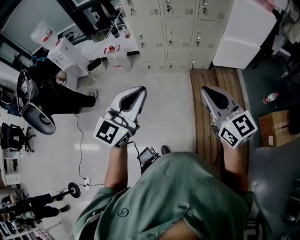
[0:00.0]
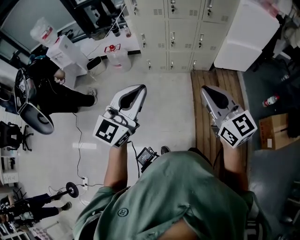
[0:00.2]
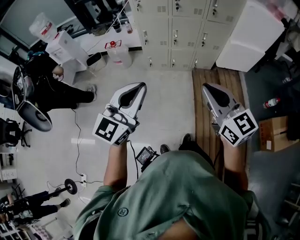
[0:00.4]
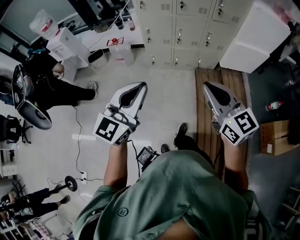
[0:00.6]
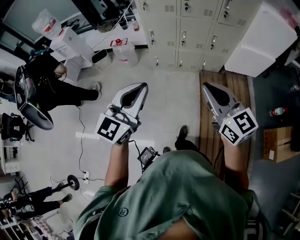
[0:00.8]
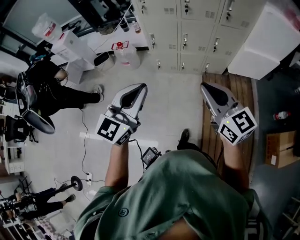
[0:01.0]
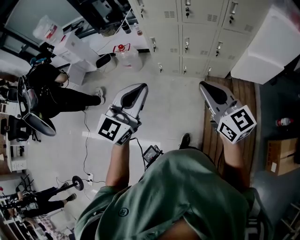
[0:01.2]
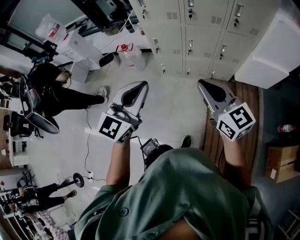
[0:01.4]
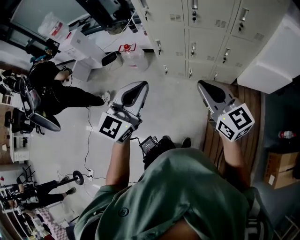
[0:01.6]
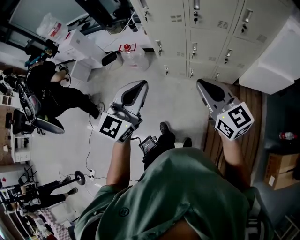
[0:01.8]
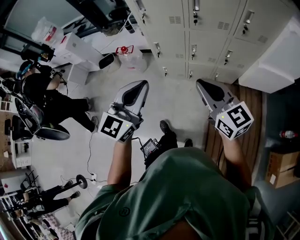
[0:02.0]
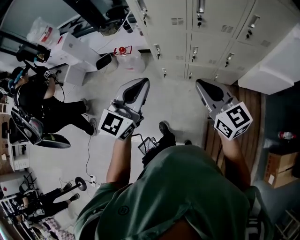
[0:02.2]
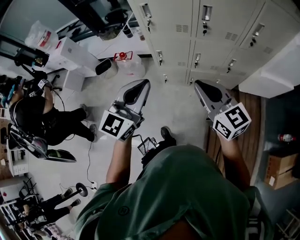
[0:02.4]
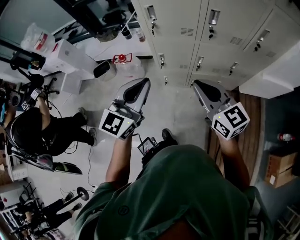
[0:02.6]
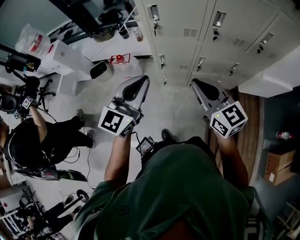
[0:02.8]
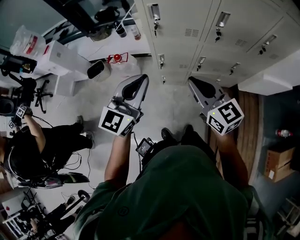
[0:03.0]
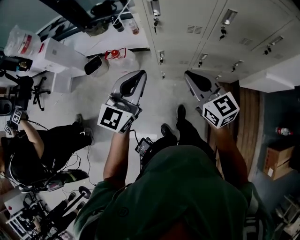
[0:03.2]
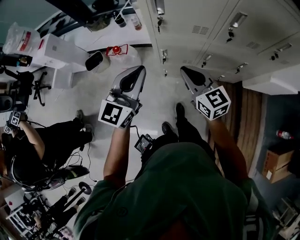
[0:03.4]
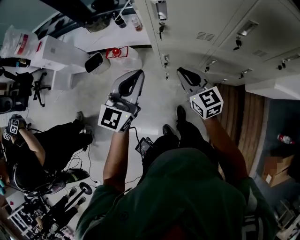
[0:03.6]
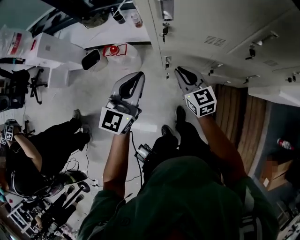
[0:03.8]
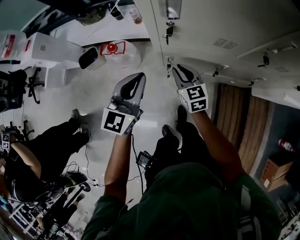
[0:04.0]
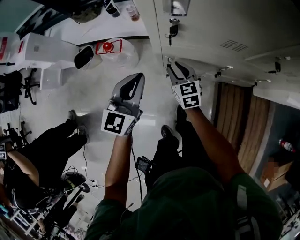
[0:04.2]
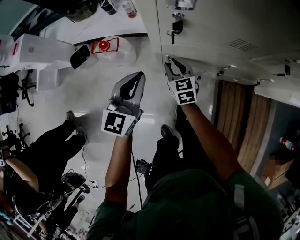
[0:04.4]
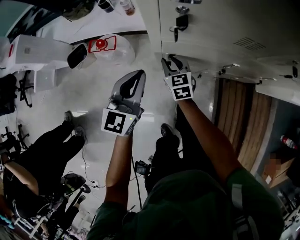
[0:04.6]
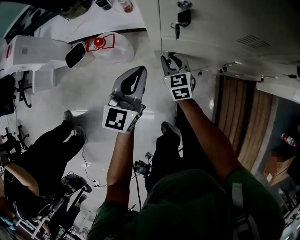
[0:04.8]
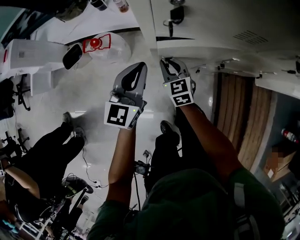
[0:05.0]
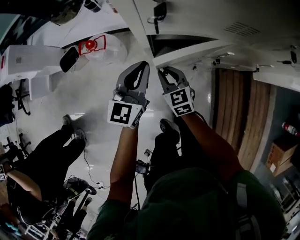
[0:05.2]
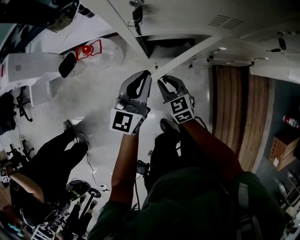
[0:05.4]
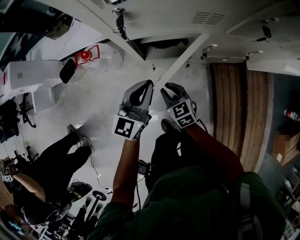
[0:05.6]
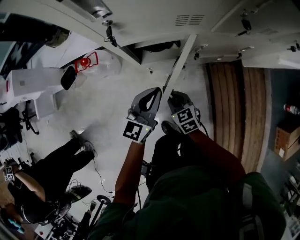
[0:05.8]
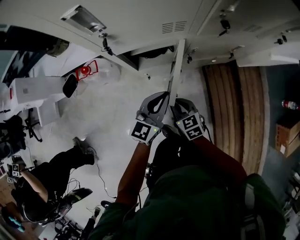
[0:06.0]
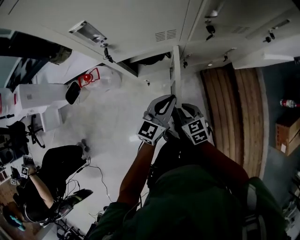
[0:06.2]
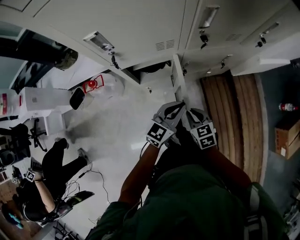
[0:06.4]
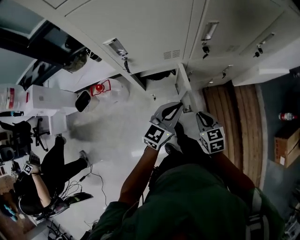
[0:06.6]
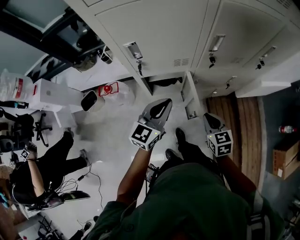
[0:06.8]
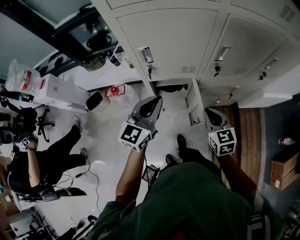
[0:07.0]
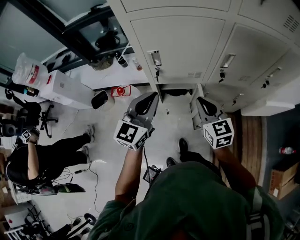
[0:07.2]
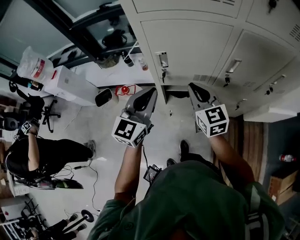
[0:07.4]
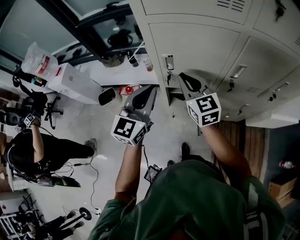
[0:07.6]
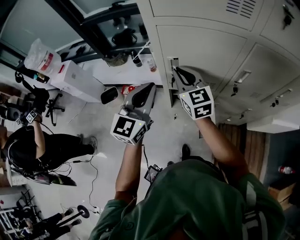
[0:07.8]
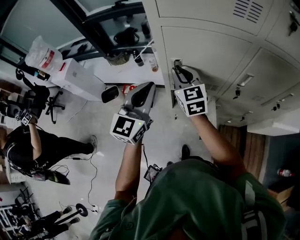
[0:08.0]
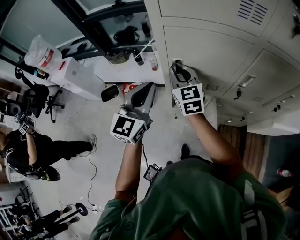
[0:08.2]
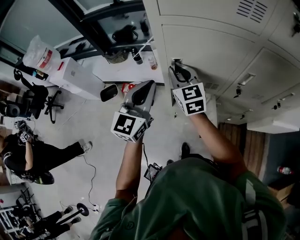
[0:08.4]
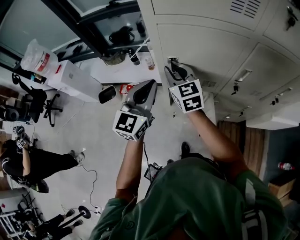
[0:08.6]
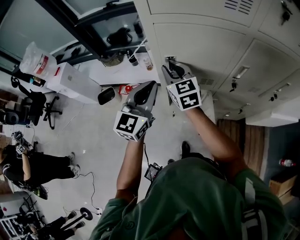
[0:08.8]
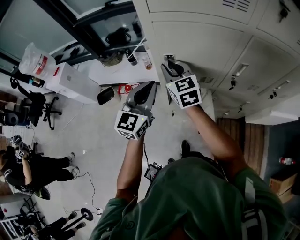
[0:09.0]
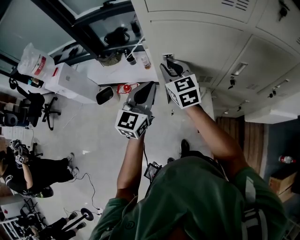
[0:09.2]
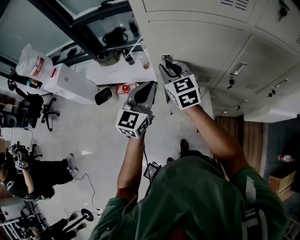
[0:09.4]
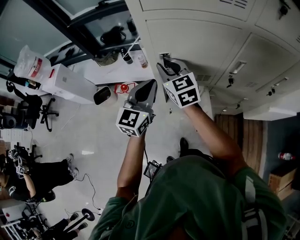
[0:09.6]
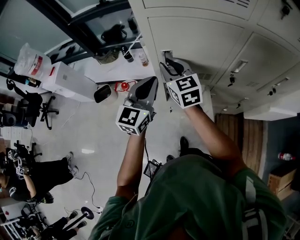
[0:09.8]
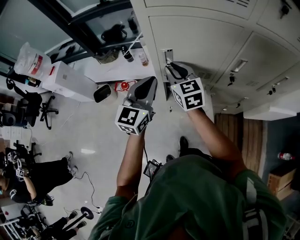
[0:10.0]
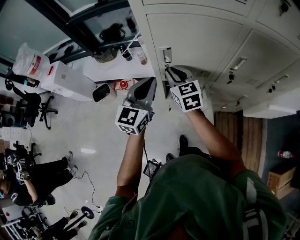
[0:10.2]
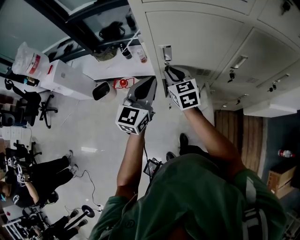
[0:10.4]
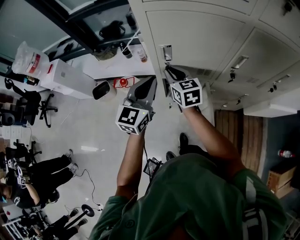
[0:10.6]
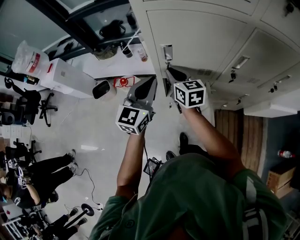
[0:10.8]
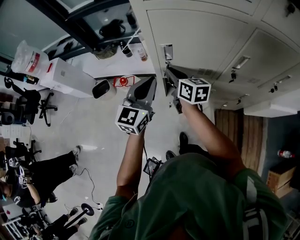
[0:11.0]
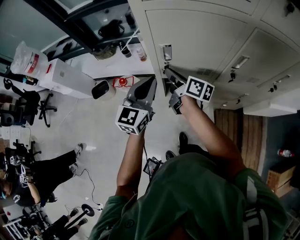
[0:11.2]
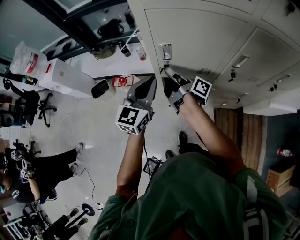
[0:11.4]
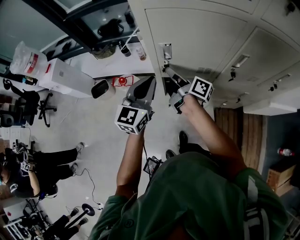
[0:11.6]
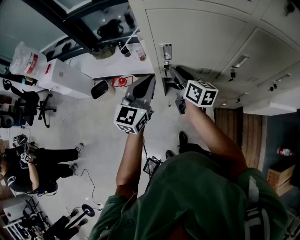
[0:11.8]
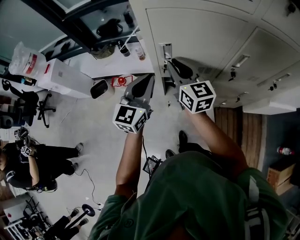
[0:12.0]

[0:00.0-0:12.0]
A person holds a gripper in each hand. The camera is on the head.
0:00.0 to 0:01.6: Both grippers travel together forward, some 30 cm.
0:01.6 to 0:03.0: The two grippers go roughly 30 cm forward and to the left.
0:03.0 to 0:04.4: The grippers both shift downward and forward by roughly 40 cm. The right gripper swivels roughly 30 degrees, and opens its fingers.
0:04.4 to 0:06.0: The right gripper heads backward and to the right, covering approximately 25 cm, while the left gripper travels to the right by about 20 cm, and changes its angle by about 20 degrees.
0:06.0 to 0:07.6: The left gripper is displaced upward and to the left by about 35 cm, and turns by about 30 degrees, while the right gripper is displaced upward by some 40 cm, and tips its fingers upward by approximately 30 degrees.
0:07.6 to 0:09.0: The right gripper heads to the left and forward, covering about 10 cm.
0:09.0 to 0:10.4: The right gripper moves downward, roughly 10 cm.
0:10.4 to 0:12.0: The right gripper heads upward, covering some 5 cm.

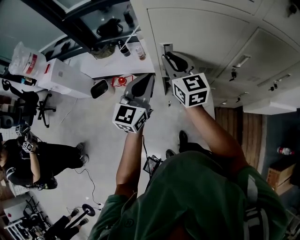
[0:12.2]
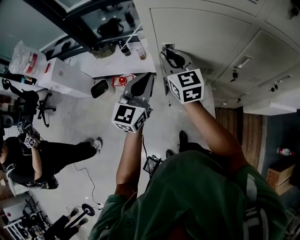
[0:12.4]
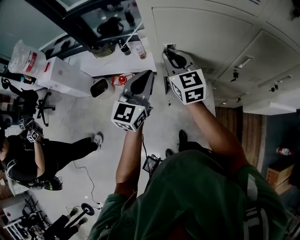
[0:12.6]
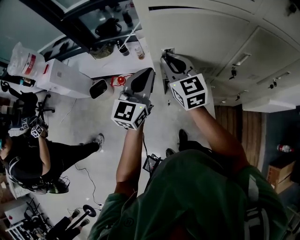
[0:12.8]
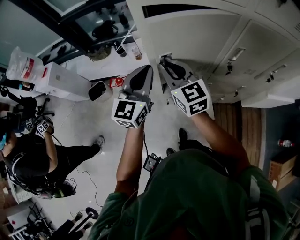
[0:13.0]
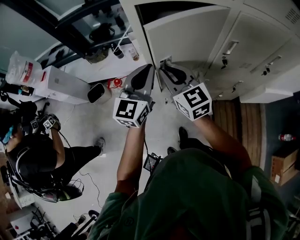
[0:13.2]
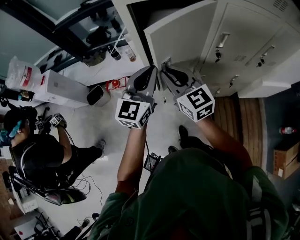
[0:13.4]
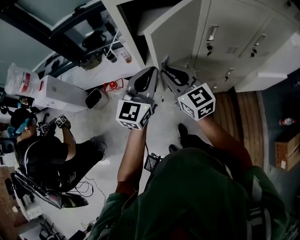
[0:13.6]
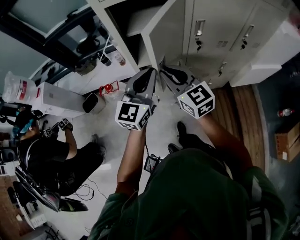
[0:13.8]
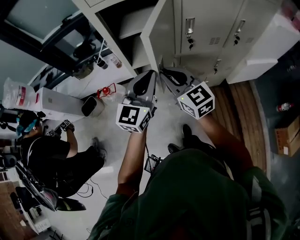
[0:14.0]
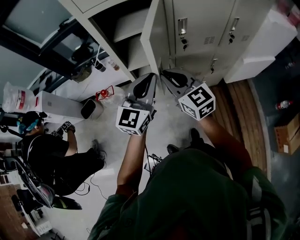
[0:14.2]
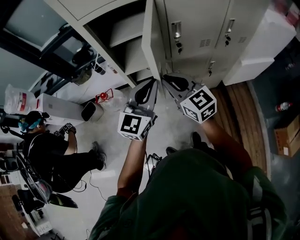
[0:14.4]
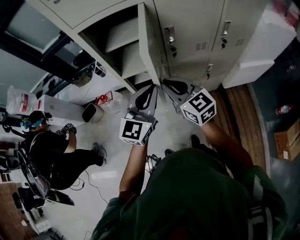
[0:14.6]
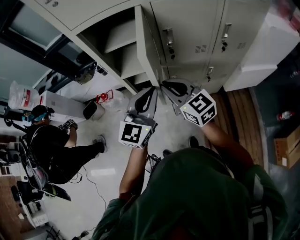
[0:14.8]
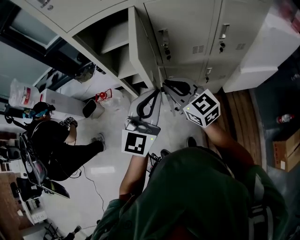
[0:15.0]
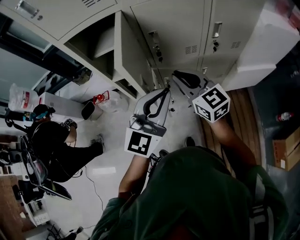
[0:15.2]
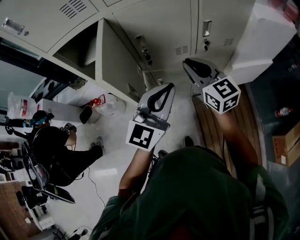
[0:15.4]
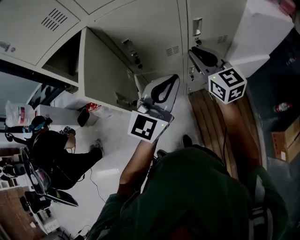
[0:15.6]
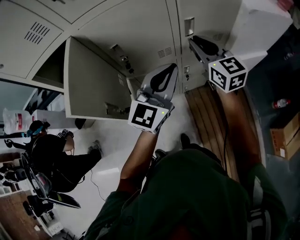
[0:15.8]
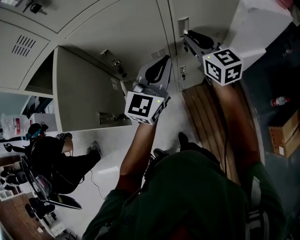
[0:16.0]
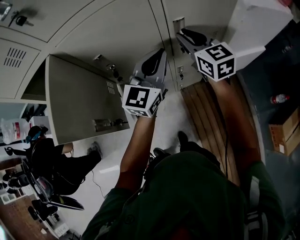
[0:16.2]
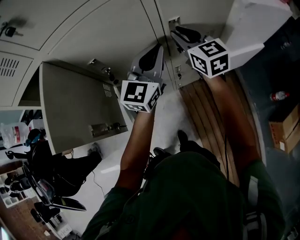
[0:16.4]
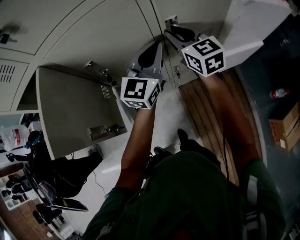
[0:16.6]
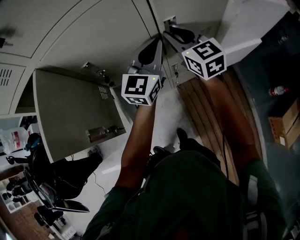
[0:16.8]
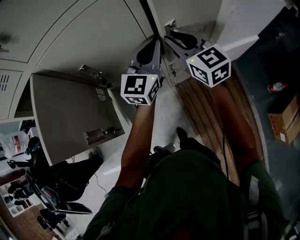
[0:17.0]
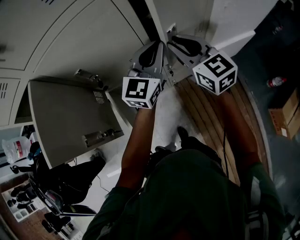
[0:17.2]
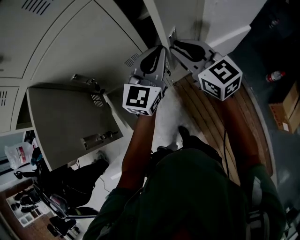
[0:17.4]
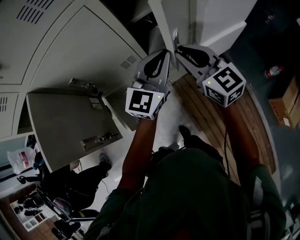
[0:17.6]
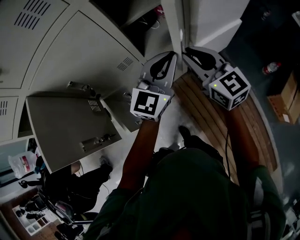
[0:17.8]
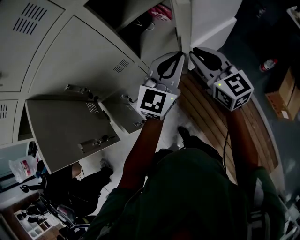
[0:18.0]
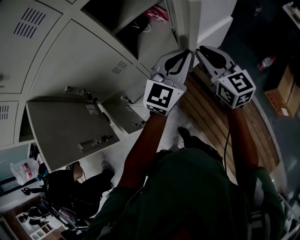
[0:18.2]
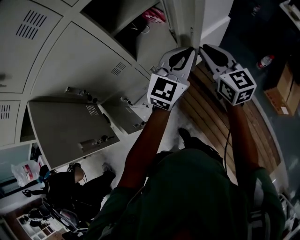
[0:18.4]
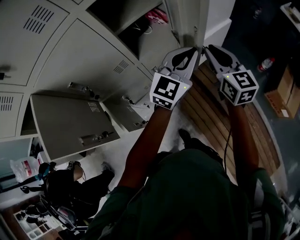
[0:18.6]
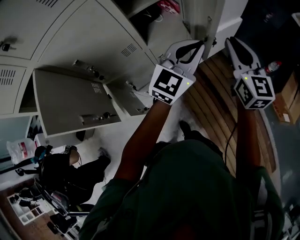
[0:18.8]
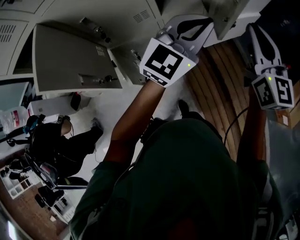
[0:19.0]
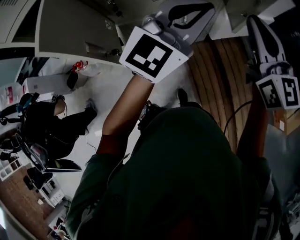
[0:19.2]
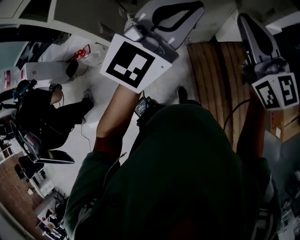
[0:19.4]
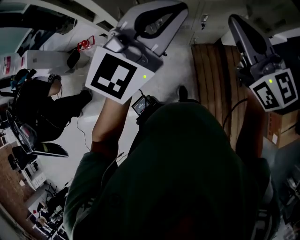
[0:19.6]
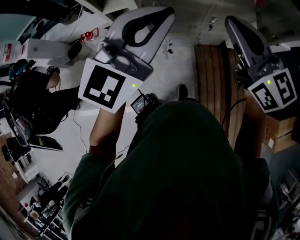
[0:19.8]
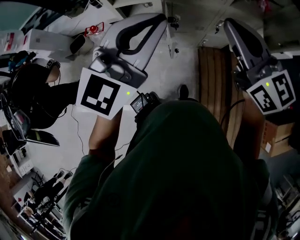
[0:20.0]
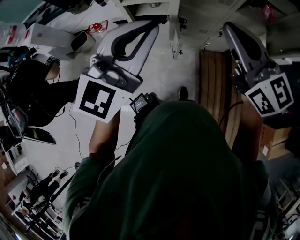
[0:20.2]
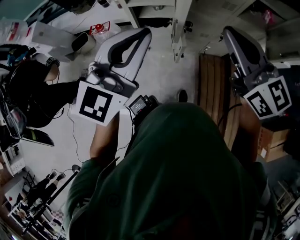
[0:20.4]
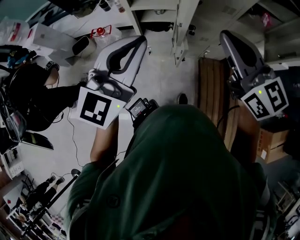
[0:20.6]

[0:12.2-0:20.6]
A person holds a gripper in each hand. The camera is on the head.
0:12.2 to 0:13.6: The left gripper moves backward and to the right, roughly 10 cm. The right gripper is displaced backward by approximately 15 cm.
0:13.6 to 0:15.0: The right gripper goes about 15 cm to the right. The left gripper is displaced to the right and backward by about 20 cm.
0:15.0 to 0:16.4: The left gripper moves forward and to the right, approximately 35 cm. The right gripper goes some 40 cm to the right and forward, and swivels approximately 30 degrees.
0:16.4 to 0:17.8: The left gripper moves to the right and backward, some 15 cm. The right gripper moves backward and to the right, some 15 cm.
0:17.8 to 0:19.2: Both grippers move backward and upward, some 15 cm. The right gripper moves about 15 cm to the right and comes back.
0:19.2 to 0:20.6: The left gripper changes place by approximately 30 cm, and swivels approximately 30 degrees. Meanwhile the right gripper changes its angle by approximately 40 degrees.

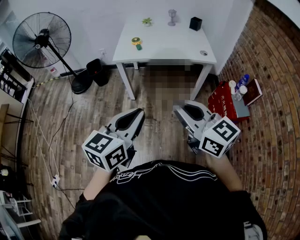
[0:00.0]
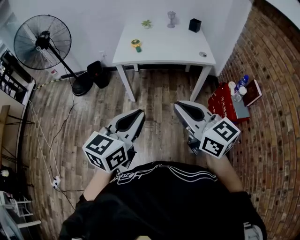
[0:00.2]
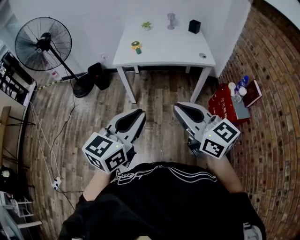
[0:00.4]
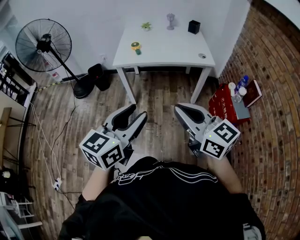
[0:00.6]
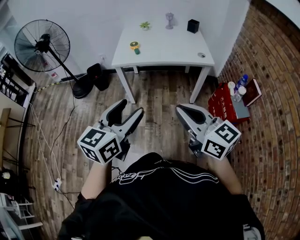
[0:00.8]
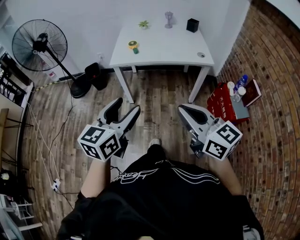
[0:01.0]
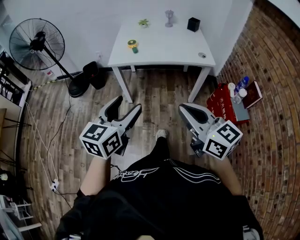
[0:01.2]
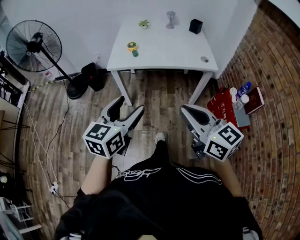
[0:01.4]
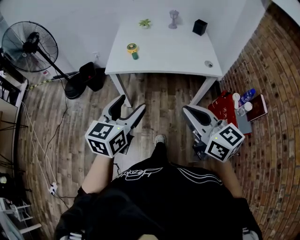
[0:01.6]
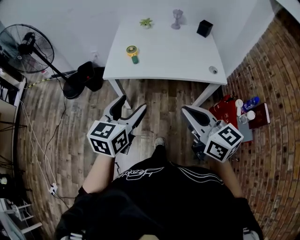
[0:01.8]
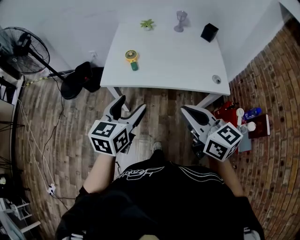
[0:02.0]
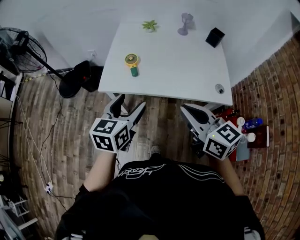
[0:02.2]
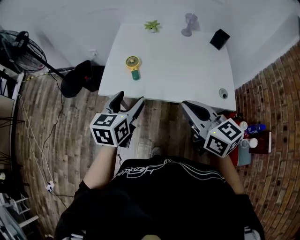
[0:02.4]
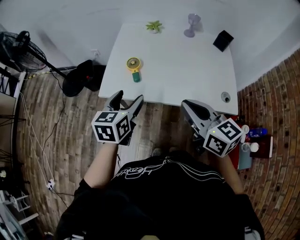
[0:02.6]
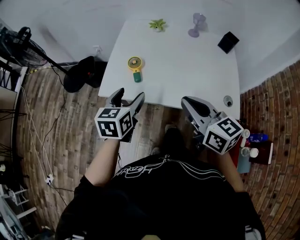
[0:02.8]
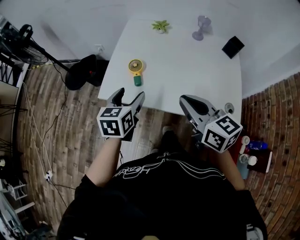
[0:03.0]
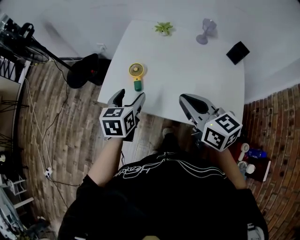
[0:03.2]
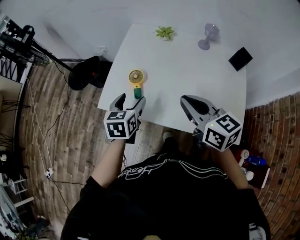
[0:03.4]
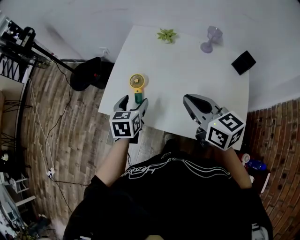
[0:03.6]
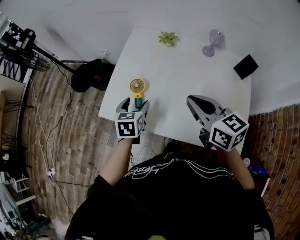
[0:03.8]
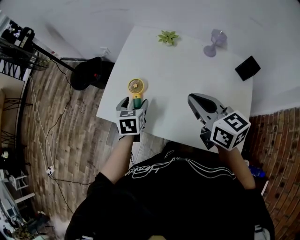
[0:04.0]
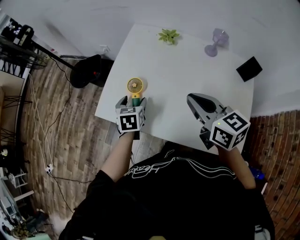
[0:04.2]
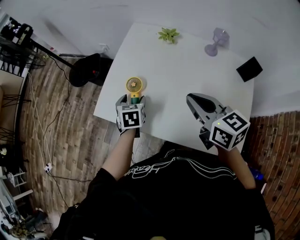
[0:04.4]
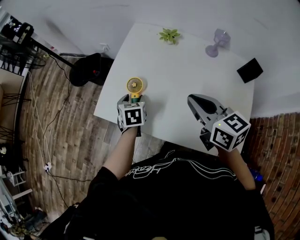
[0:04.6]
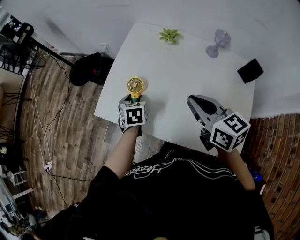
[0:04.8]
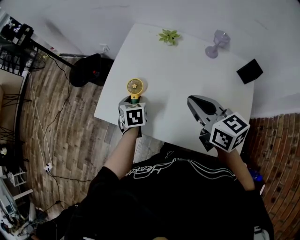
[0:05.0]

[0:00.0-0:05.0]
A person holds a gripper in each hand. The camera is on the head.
0:00.0 to 0:01.6: The two grippers go about 15 cm forward. The left gripper opens.
0:01.6 to 0:03.4: Both grippers travel together forward, approximately 40 cm. The left gripper rotates approximately 30 degrees.
0:03.4 to 0:05.0: The left gripper moves downward and forward, about 15 cm, rotates some 20 degrees, and closes up, while the right gripper moves forward and to the right, some 10 cm.
